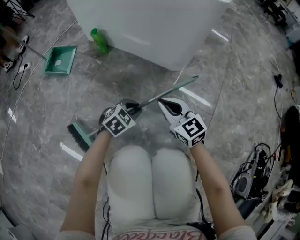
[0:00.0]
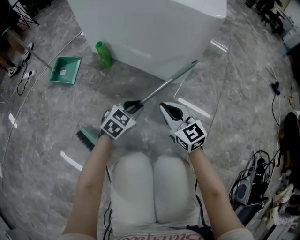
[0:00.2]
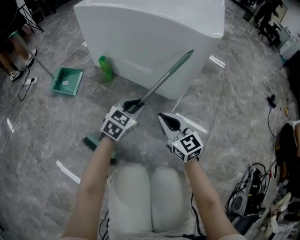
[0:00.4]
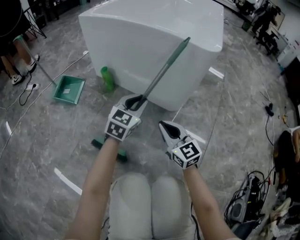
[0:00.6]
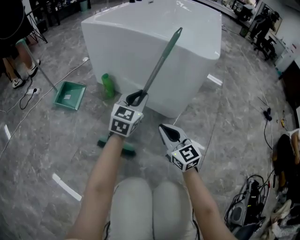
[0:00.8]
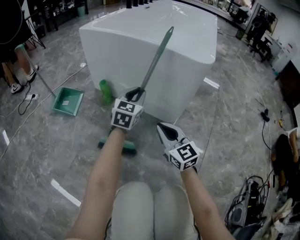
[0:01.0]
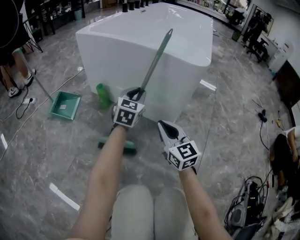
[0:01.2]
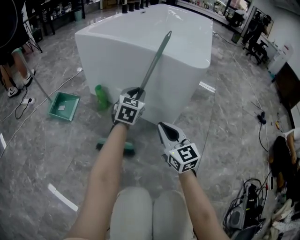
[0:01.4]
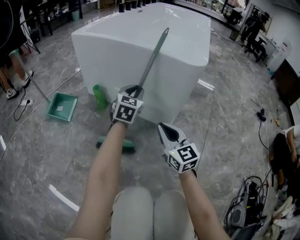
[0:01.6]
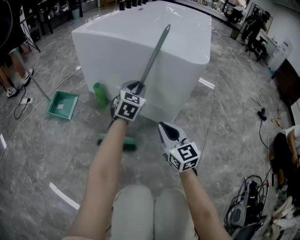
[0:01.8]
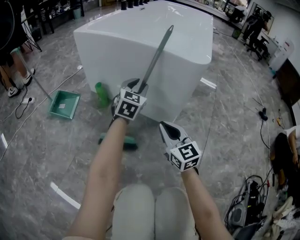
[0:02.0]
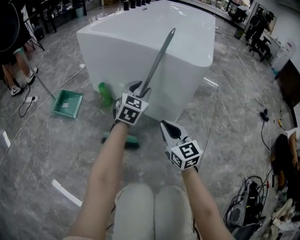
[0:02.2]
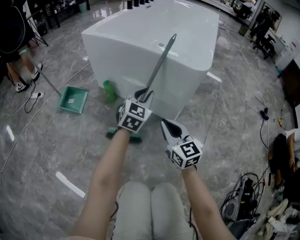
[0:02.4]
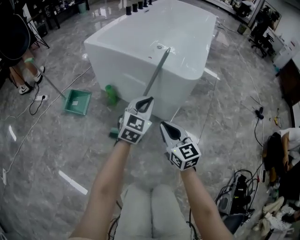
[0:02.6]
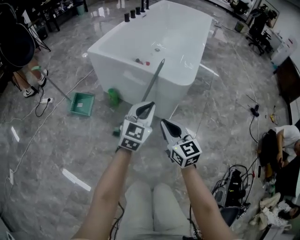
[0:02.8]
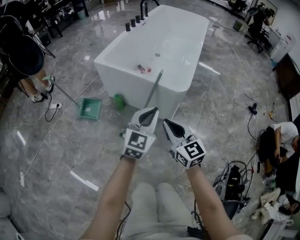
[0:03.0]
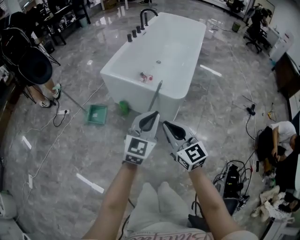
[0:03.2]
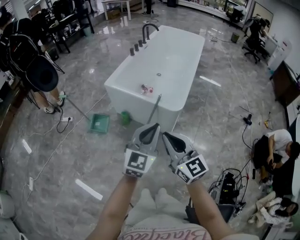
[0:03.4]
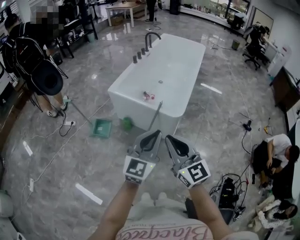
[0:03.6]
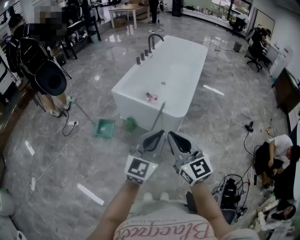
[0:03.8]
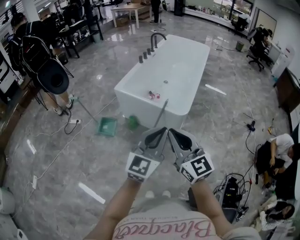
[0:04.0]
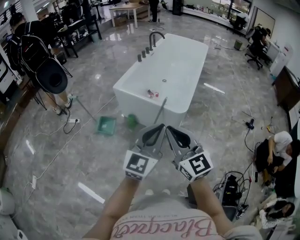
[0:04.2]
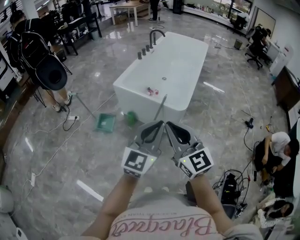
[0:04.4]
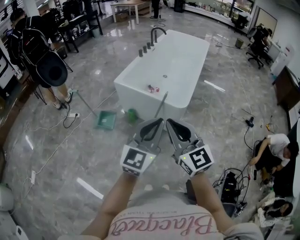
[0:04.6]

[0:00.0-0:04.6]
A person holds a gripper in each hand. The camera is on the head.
0:00.0 to 0:01.6: The right gripper shifts about 15 cm upward and forward. The left gripper is displaced forward and upward by roughly 35 cm, and tilts its fingers about 30 degrees upward.
0:01.6 to 0:03.0: The right gripper heads upward, covering roughly 30 cm. The left gripper goes approximately 40 cm upward and backward.
0:03.0 to 0:04.6: The right gripper moves upward, some 25 cm, while the left gripper moves upward and backward, about 25 cm.

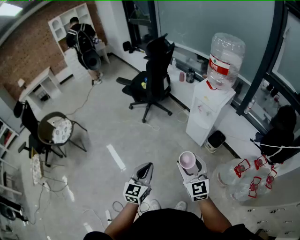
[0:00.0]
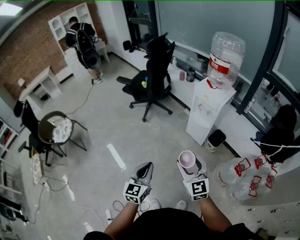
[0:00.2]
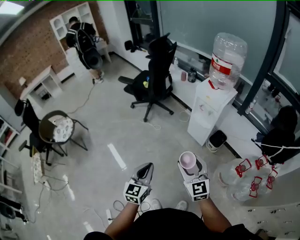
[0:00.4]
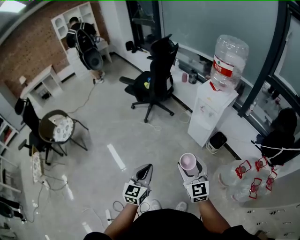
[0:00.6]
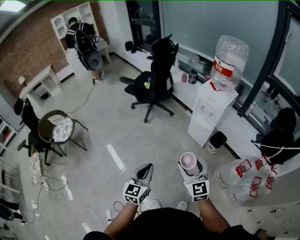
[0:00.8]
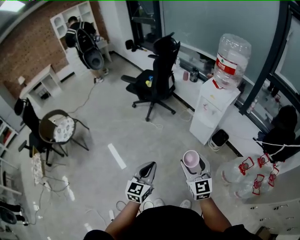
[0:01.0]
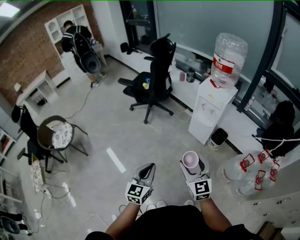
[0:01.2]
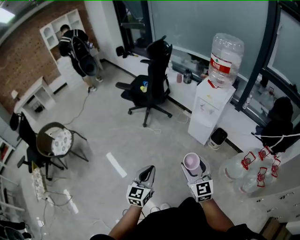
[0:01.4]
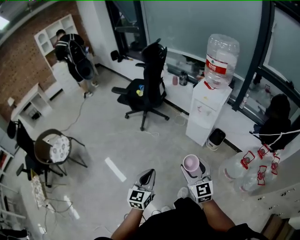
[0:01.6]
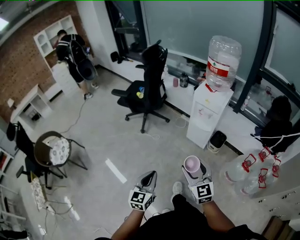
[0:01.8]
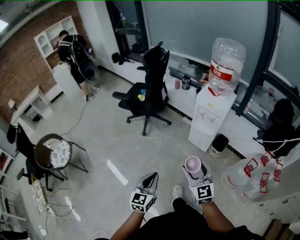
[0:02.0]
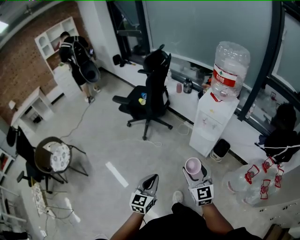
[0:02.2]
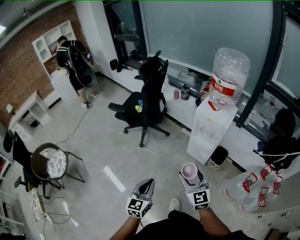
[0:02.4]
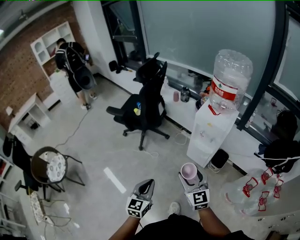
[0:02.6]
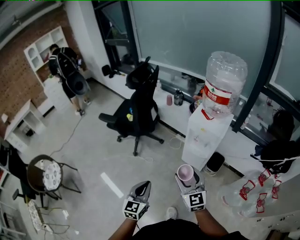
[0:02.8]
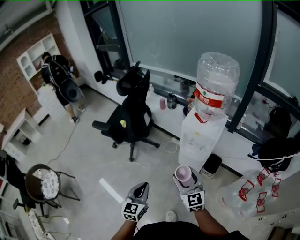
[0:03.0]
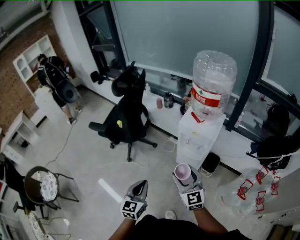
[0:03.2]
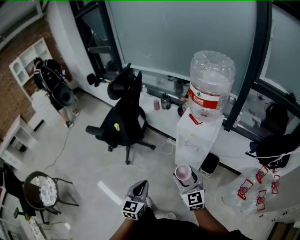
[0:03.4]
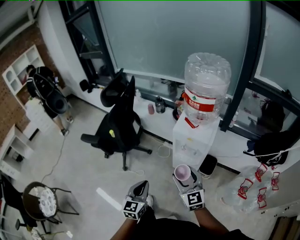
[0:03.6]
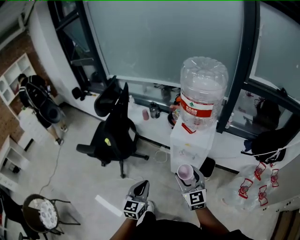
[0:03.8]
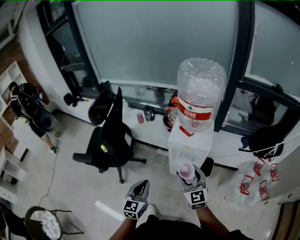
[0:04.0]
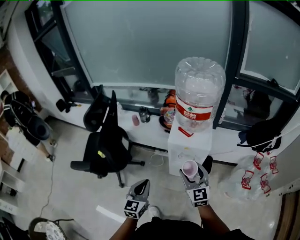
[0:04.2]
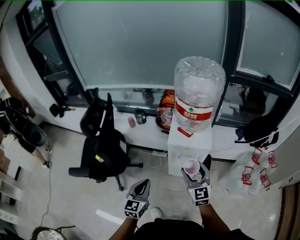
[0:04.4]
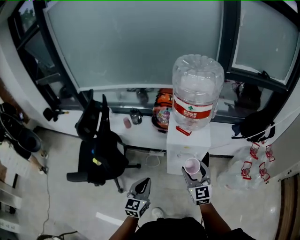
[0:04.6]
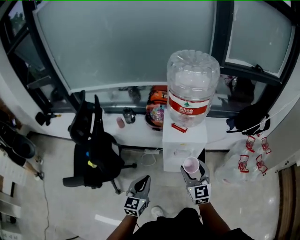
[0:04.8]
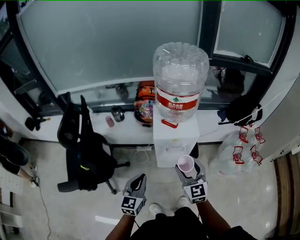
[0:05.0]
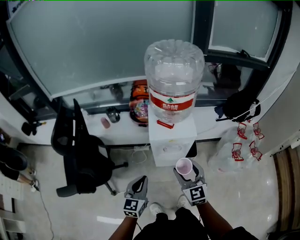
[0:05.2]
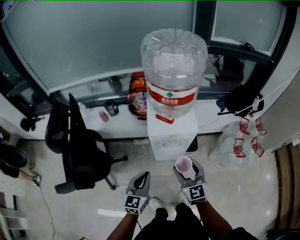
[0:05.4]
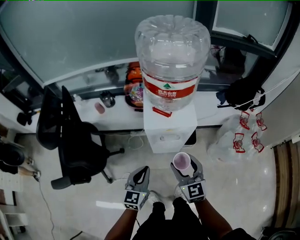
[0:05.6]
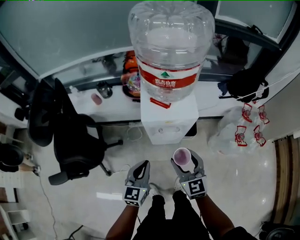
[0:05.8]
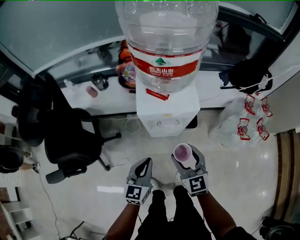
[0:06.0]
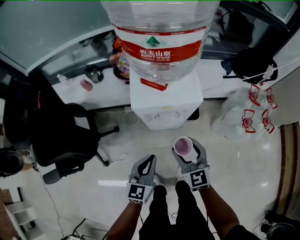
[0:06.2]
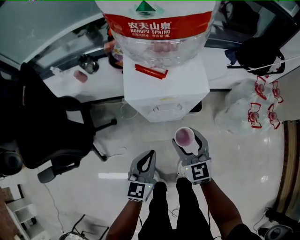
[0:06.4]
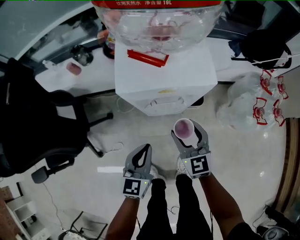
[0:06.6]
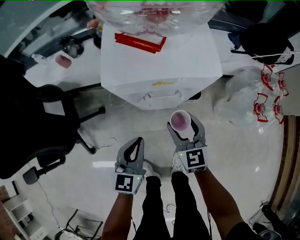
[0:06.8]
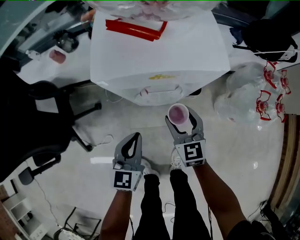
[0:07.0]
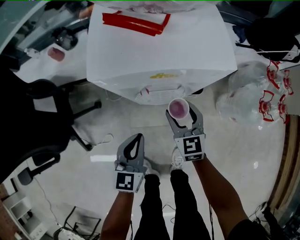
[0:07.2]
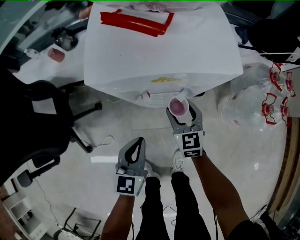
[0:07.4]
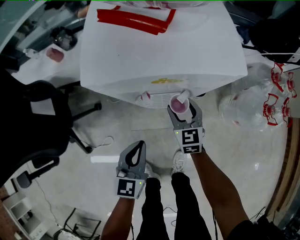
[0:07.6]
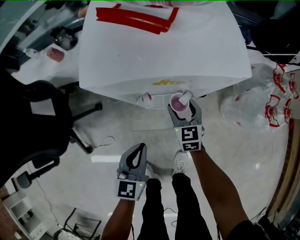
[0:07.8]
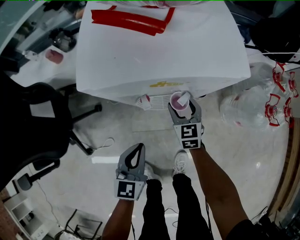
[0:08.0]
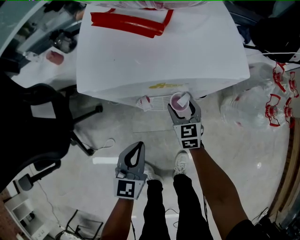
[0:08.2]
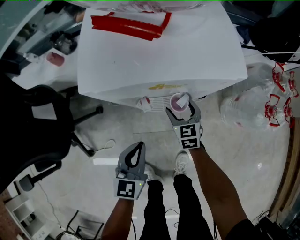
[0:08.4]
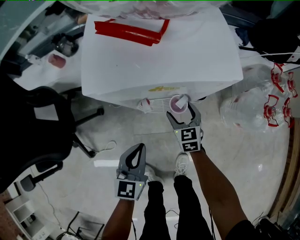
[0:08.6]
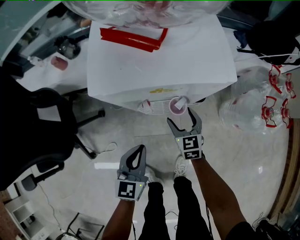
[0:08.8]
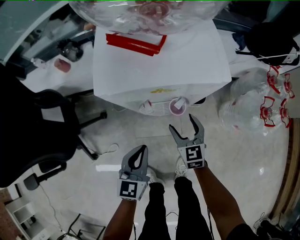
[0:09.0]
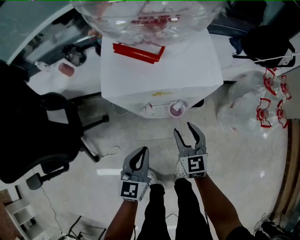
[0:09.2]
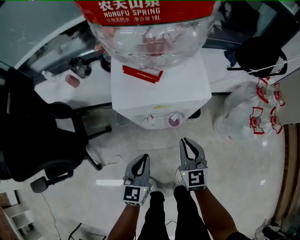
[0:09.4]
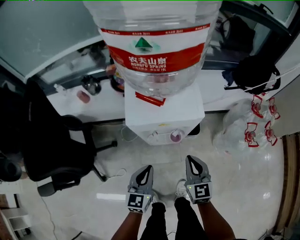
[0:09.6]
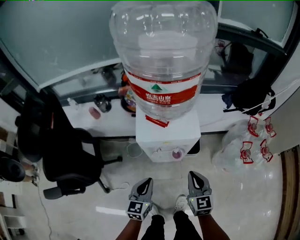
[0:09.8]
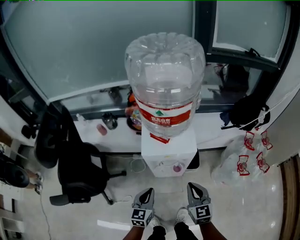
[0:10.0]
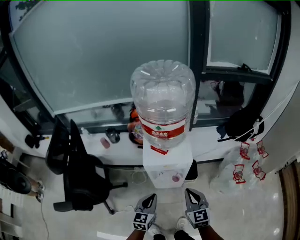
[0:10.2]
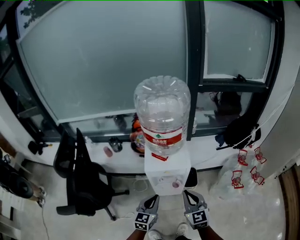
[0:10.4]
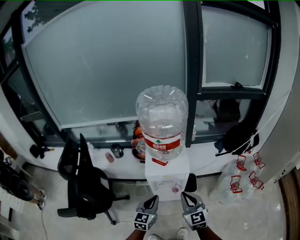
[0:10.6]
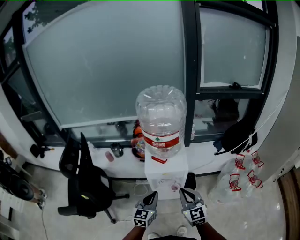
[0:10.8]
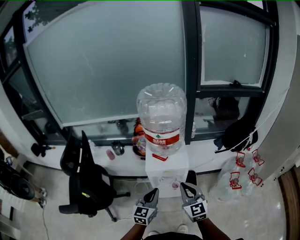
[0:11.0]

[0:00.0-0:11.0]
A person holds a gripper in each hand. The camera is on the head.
0:00.0 to 0:01.6: The grippers both shift to the left by about 10 cm.
0:01.6 to 0:03.2: Both grippers travel together forward, some 30 cm.
0:03.2 to 0:04.8: The left gripper ends up approximately 25 cm from where it was, and turns by approximately 30 degrees. The right gripper changes place by roughly 15 cm, and turns by approximately 40 degrees.
0:04.8 to 0:06.2: The right gripper shifts roughly 15 cm downward. The left gripper is displaced downward, to the right and forward by some 20 cm.
0:06.2 to 0:07.8: The right gripper shifts approximately 30 cm downward and forward. Meanwhile the left gripper goes about 20 cm downward.
0:07.8 to 0:09.4: The right gripper heads upward and backward, covering about 20 cm, and closes; the left gripper travels upward by some 10 cm.
0:09.4 to 0:11.0: Both grippers travel together upward, about 30 cm.

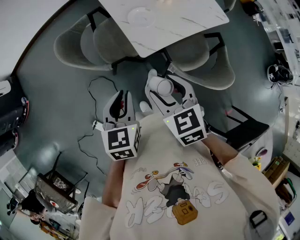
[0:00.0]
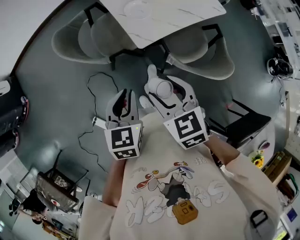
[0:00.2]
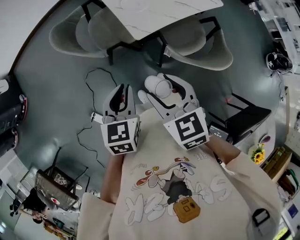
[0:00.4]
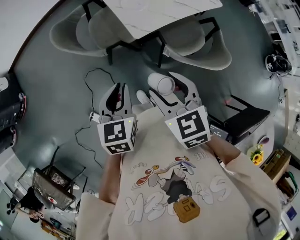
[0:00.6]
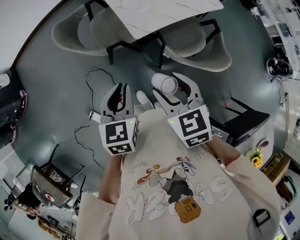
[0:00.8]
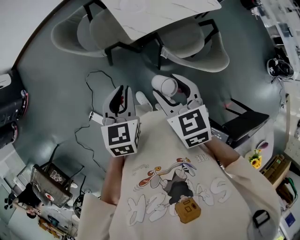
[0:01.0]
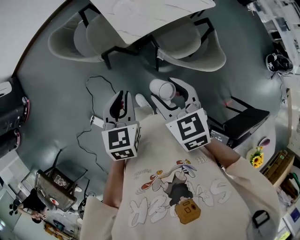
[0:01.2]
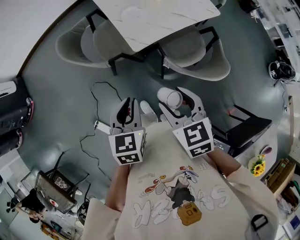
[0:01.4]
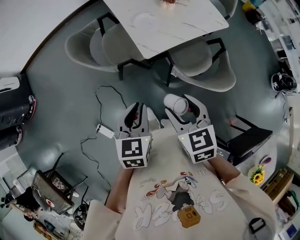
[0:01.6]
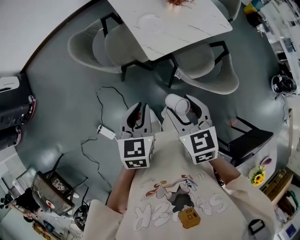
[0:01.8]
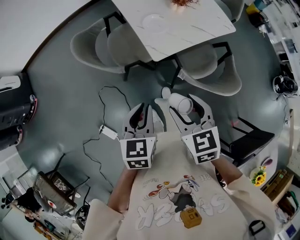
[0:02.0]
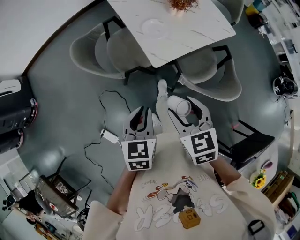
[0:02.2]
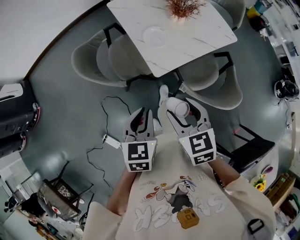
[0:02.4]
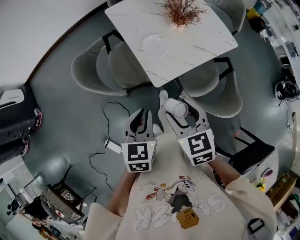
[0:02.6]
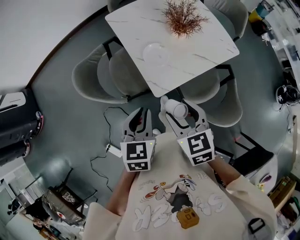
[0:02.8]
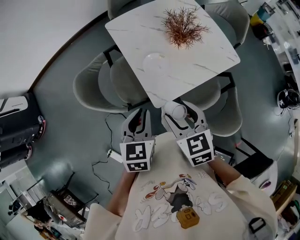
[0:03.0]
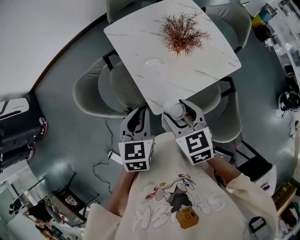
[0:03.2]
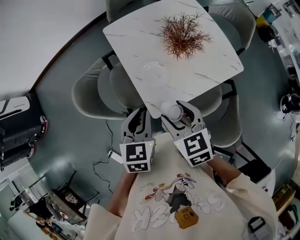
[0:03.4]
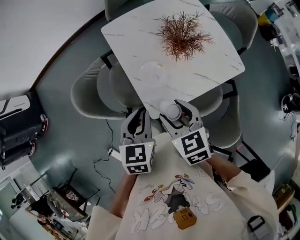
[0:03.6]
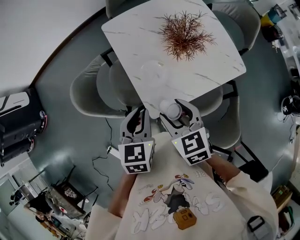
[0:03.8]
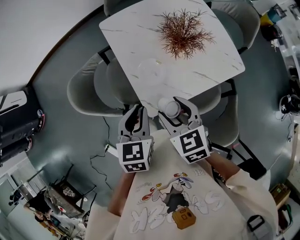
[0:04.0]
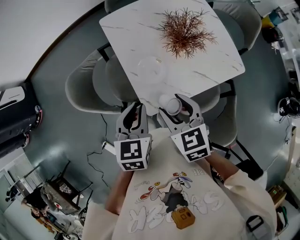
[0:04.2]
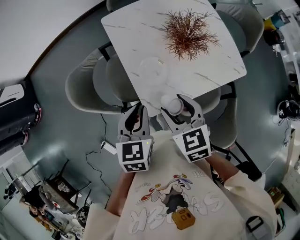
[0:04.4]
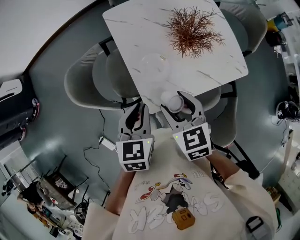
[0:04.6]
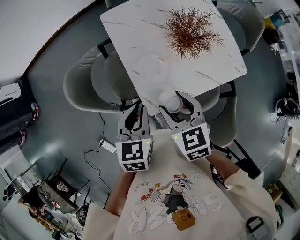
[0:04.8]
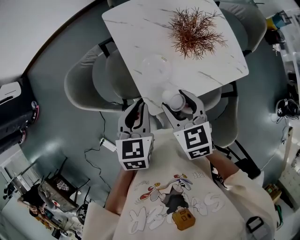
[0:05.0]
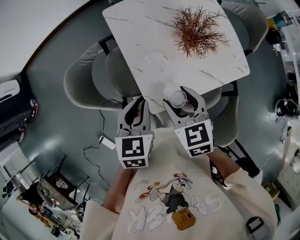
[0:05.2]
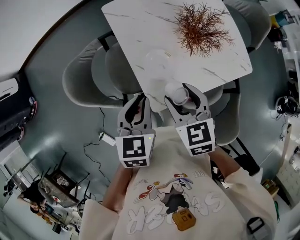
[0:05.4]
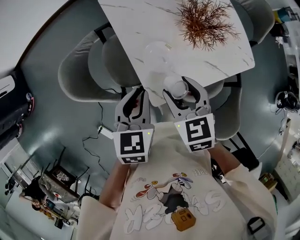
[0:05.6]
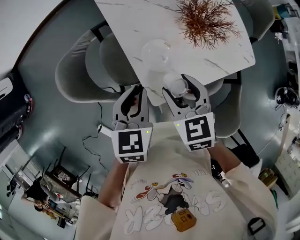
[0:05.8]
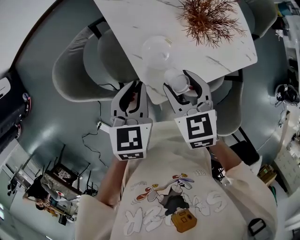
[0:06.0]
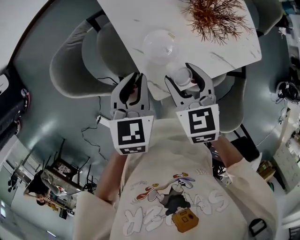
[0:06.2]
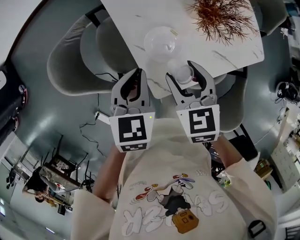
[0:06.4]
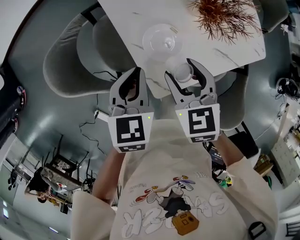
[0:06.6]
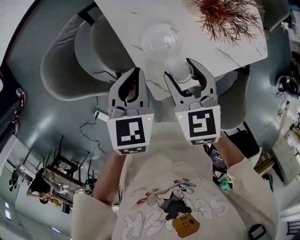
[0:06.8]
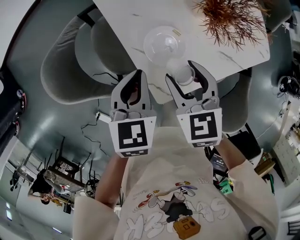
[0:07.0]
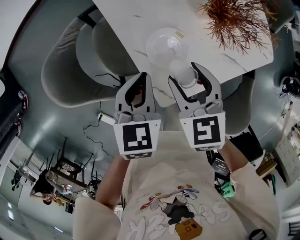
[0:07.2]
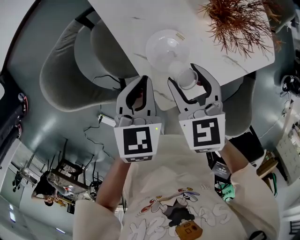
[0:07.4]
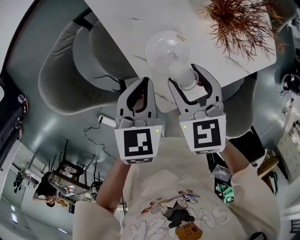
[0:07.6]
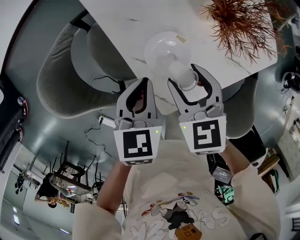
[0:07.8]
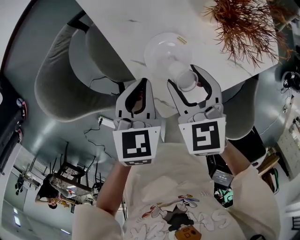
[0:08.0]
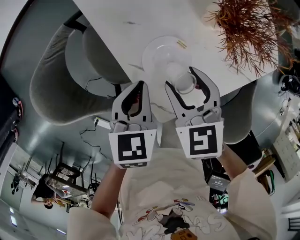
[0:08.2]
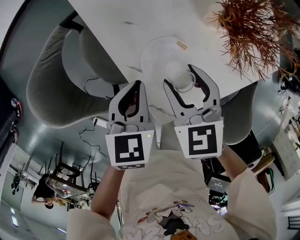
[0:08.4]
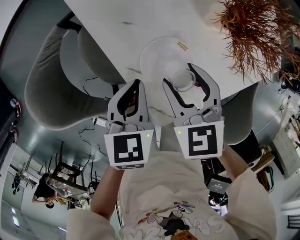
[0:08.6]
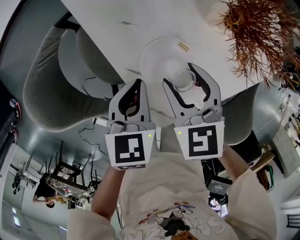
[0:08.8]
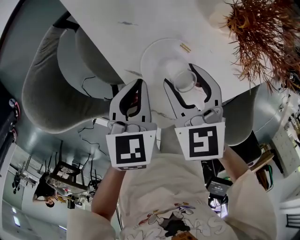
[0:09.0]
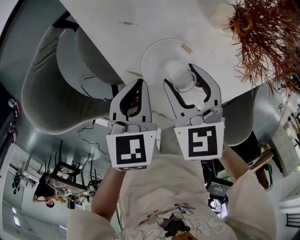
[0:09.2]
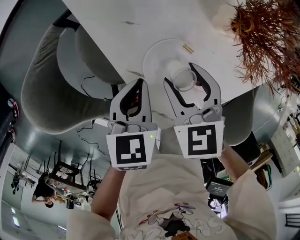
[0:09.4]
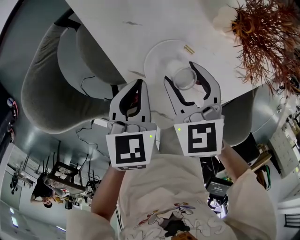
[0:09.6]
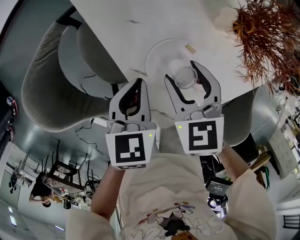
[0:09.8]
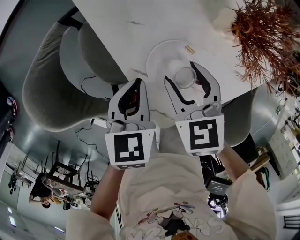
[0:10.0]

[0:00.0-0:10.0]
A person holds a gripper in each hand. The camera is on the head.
0:00.0 to 0:01.4: The right gripper shifts roughly 10 cm backward and to the right; the left gripper goes some 10 cm backward.
0:01.4 to 0:02.8: Both grippers travel together forward, approximately 20 cm.
0:02.8 to 0:04.2: The left gripper is displaced forward and to the right by approximately 15 cm. Meanwhile the right gripper is displaced forward by some 15 cm.
0:04.2 to 0:05.8: The two grippers go some 5 cm forward.
0:05.8 to 0:07.2: The right gripper moves downward, approximately 10 cm. The left gripper heads downward and forward, covering roughly 10 cm.
0:07.2 to 0:08.6: The two grippers go some 10 cm downward.
0:08.6 to 0:10.0: The grippers move only a little.